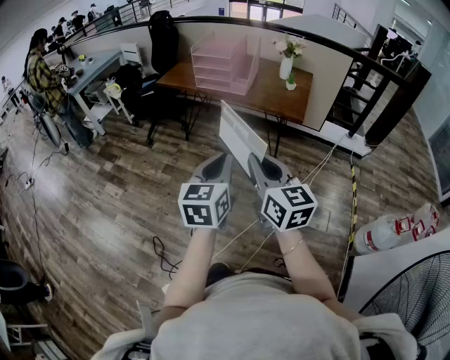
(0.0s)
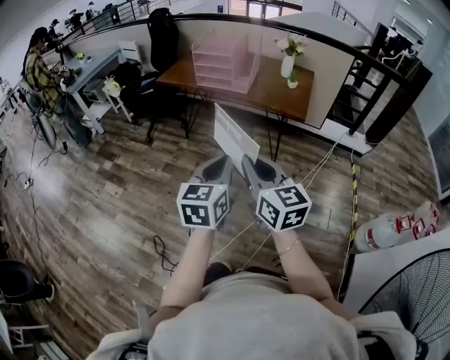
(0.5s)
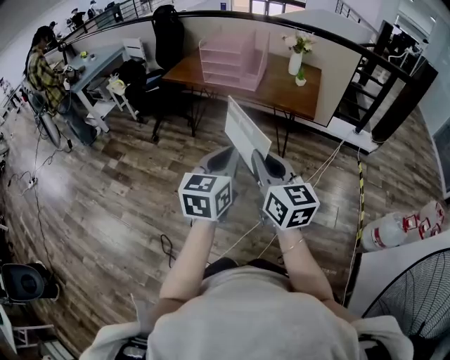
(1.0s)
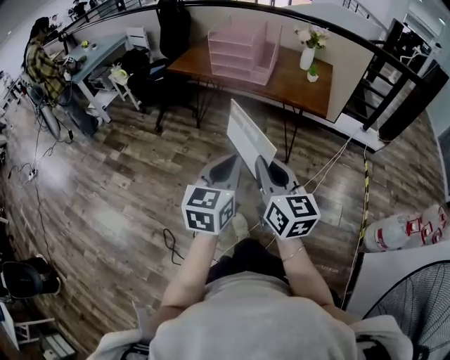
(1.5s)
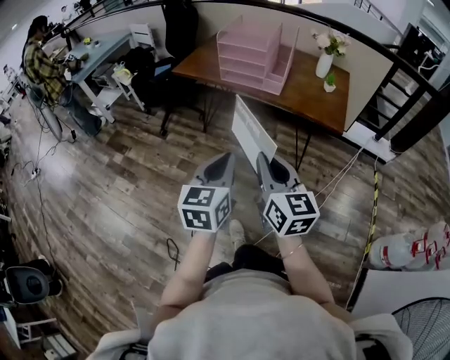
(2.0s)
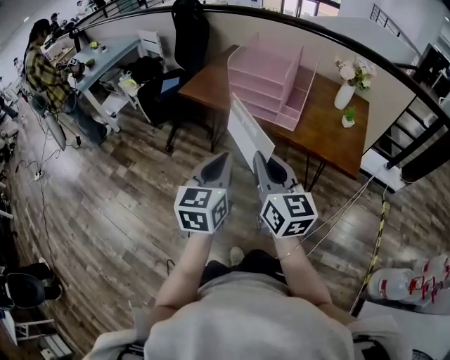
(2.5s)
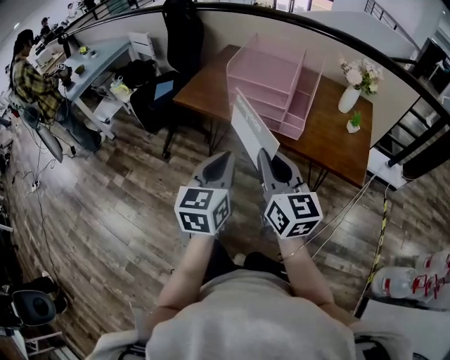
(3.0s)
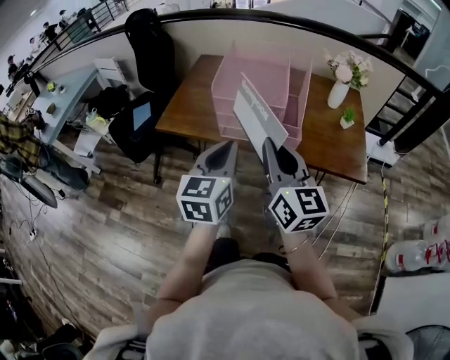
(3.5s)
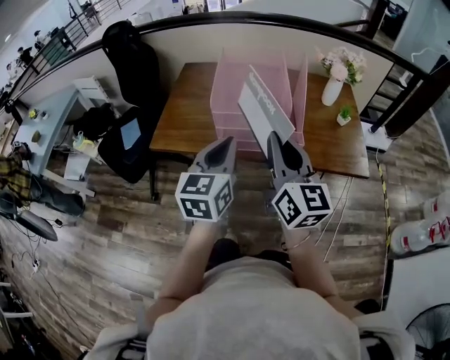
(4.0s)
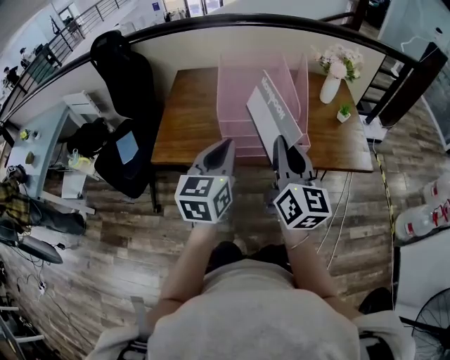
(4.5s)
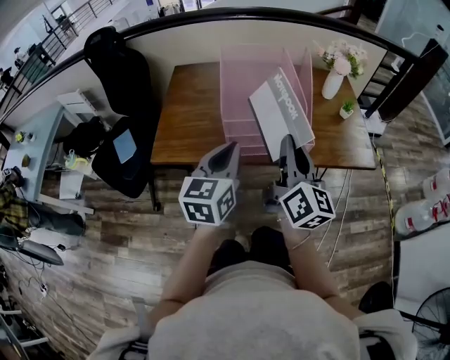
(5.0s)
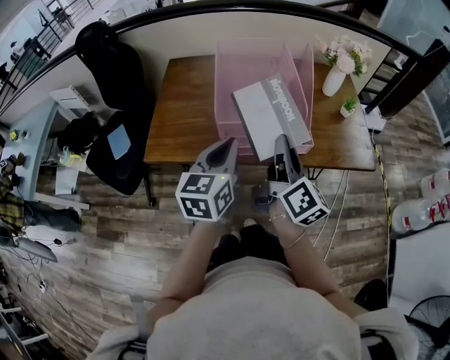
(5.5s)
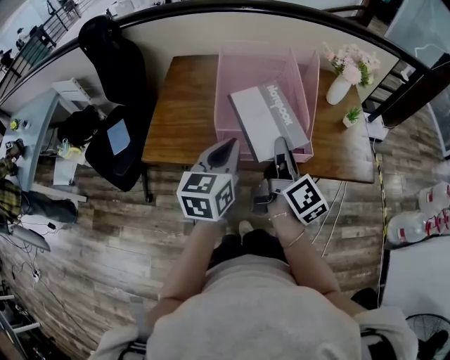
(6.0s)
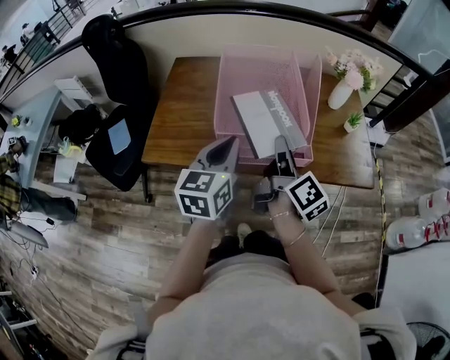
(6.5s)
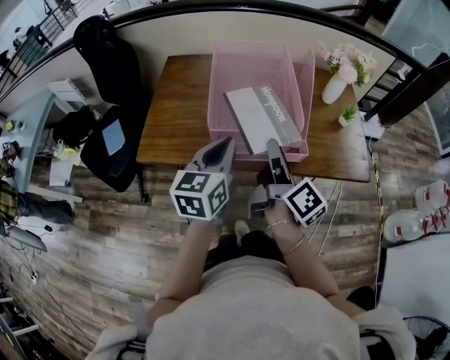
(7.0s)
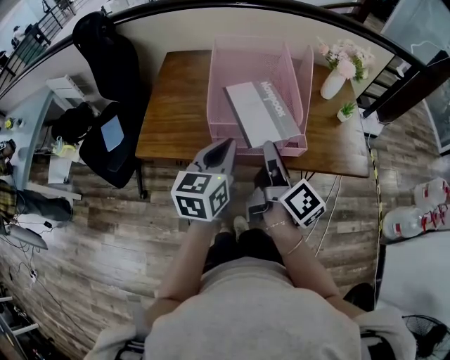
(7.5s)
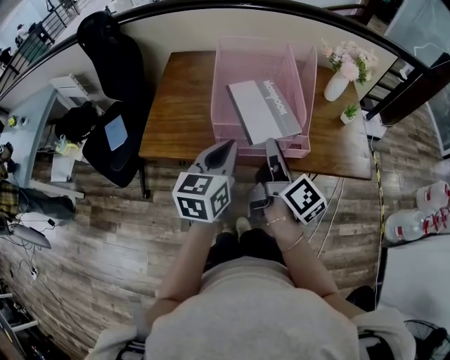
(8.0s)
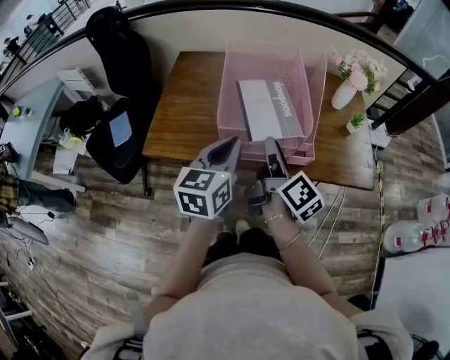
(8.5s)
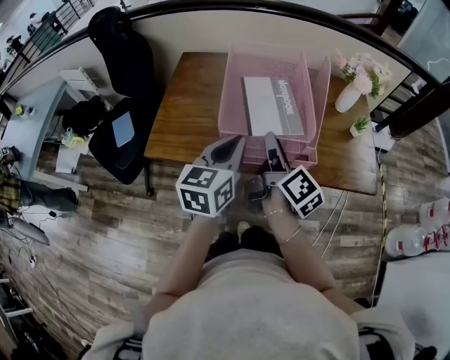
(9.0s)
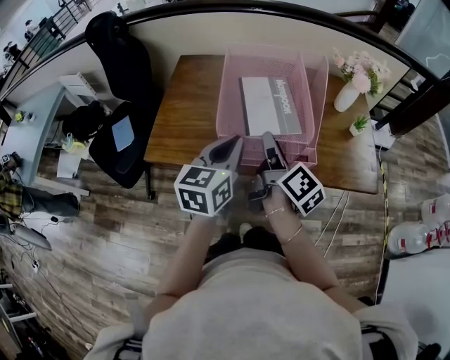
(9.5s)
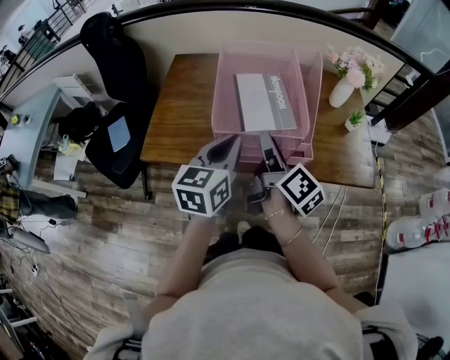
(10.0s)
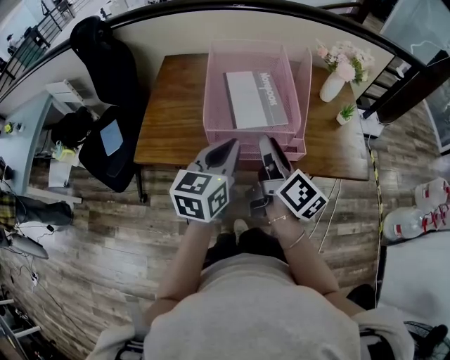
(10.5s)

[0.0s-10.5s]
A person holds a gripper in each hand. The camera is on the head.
0.0s to 2.0s: Both grippers travel together forward and to the left, some 20 cm.
2.0s to 4.0s: Both grippers are carried forward, roughly 40 cm. The right gripper turns by roughly 20 degrees.
4.0s to 6.5s: The left gripper is displaced forward by approximately 10 cm. The right gripper moves forward and downward, roughly 15 cm, and rotates around the line of its fingers by some 50 degrees, clockwise from behind.
6.5s to 10.5s: There are only small adjustments of the grippers.

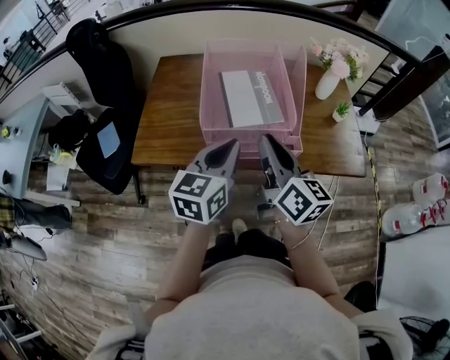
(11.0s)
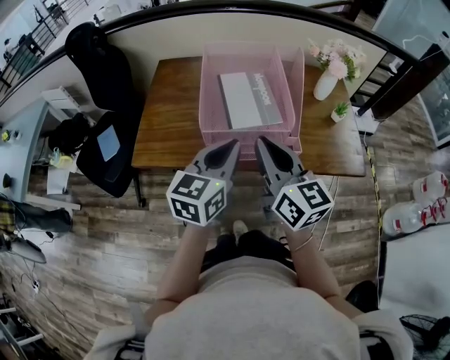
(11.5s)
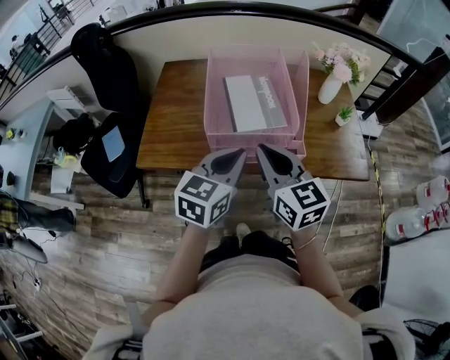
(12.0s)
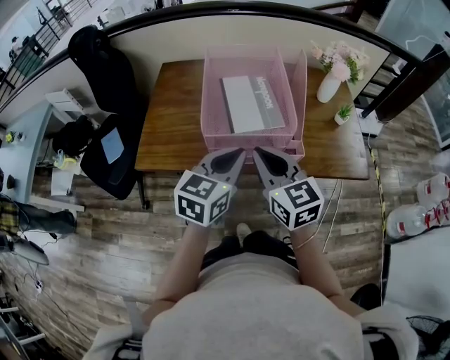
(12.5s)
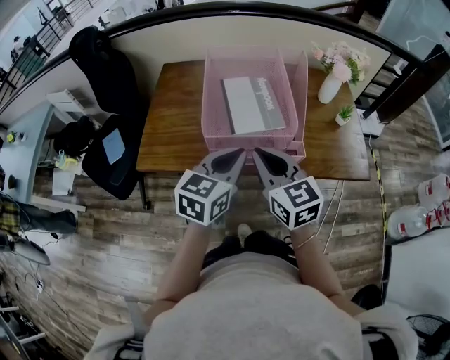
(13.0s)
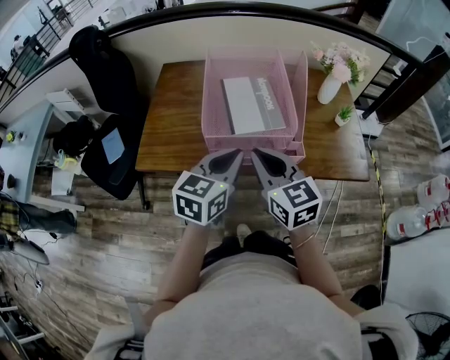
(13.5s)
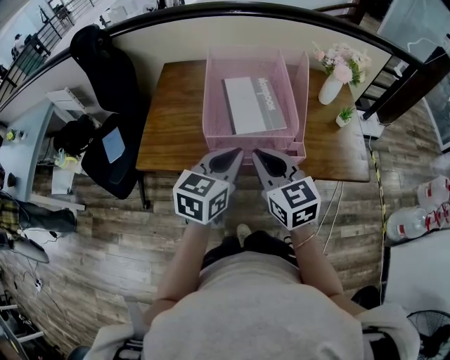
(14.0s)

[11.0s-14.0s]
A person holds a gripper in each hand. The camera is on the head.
11.0s to 12.5s: The right gripper rotates about 40 degrees.
12.5s to 14.0s: Both grippers stay about where they are.

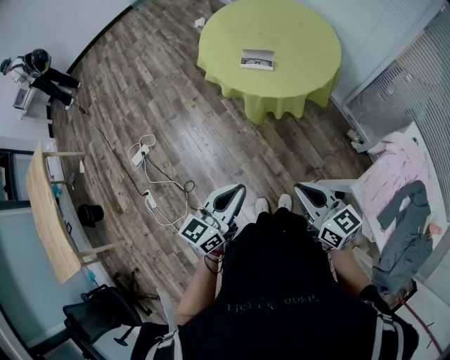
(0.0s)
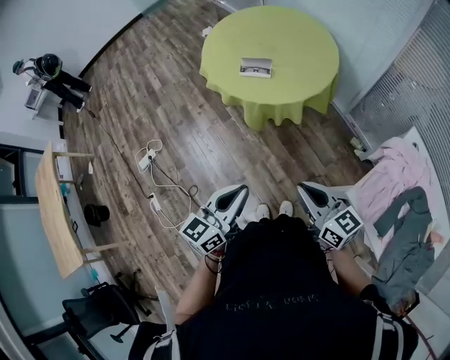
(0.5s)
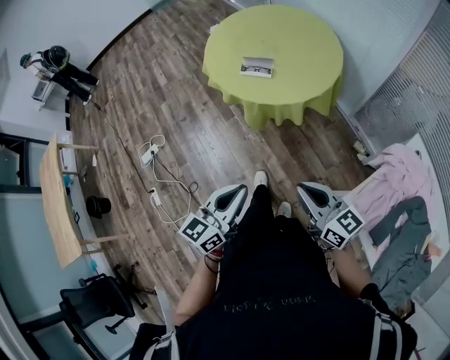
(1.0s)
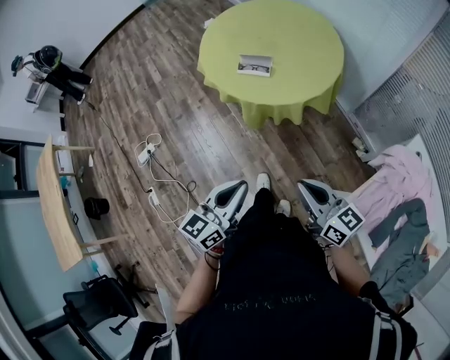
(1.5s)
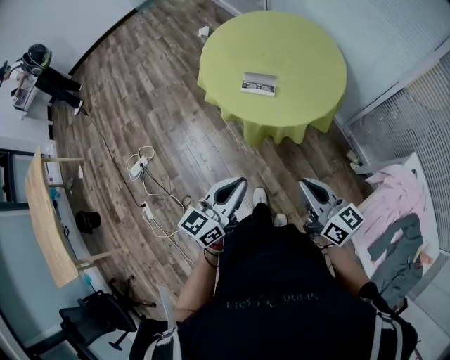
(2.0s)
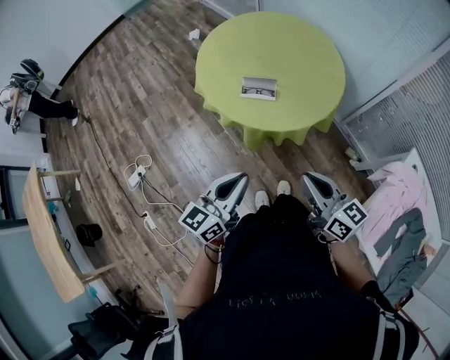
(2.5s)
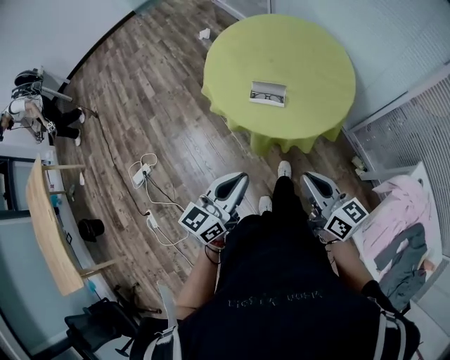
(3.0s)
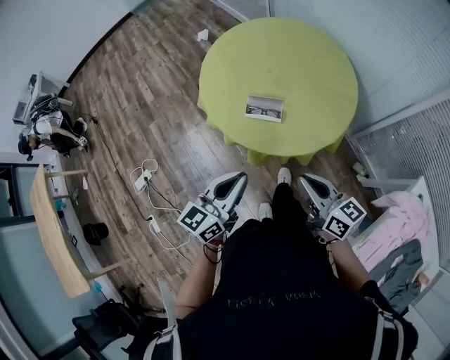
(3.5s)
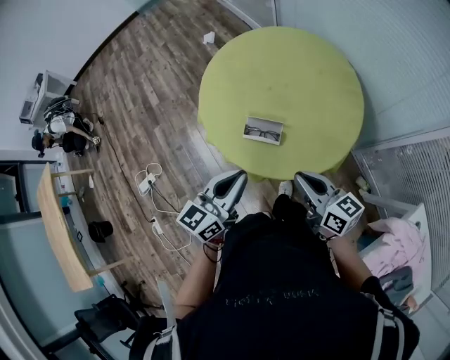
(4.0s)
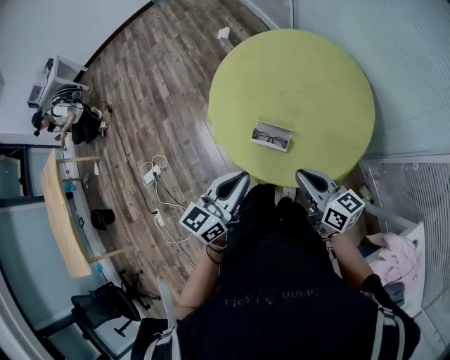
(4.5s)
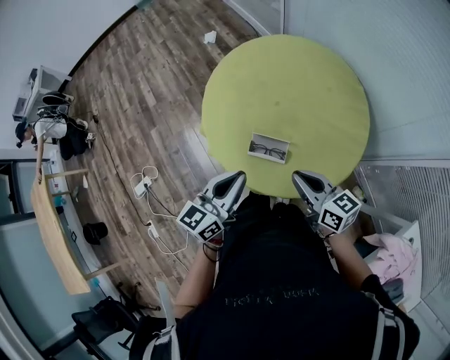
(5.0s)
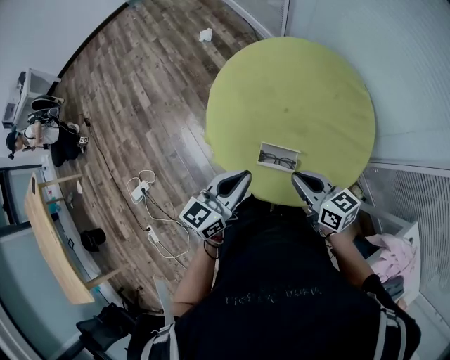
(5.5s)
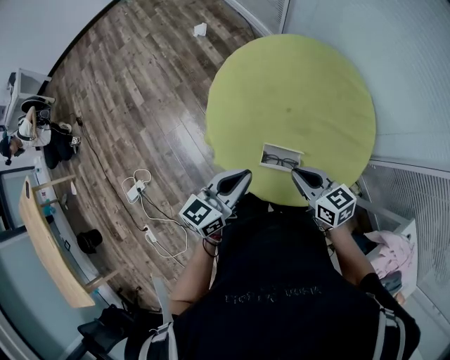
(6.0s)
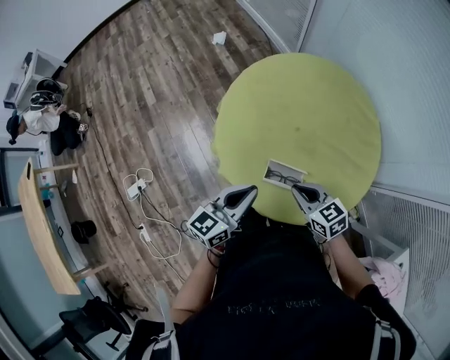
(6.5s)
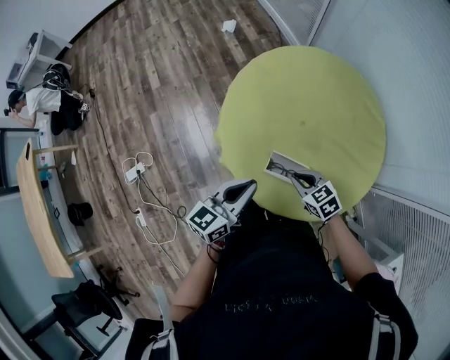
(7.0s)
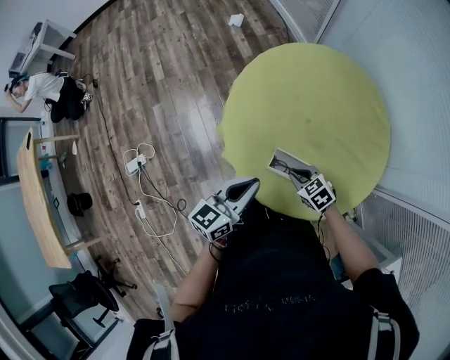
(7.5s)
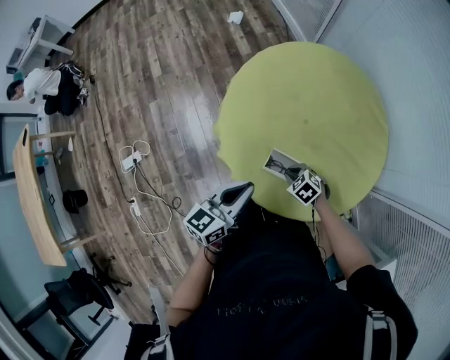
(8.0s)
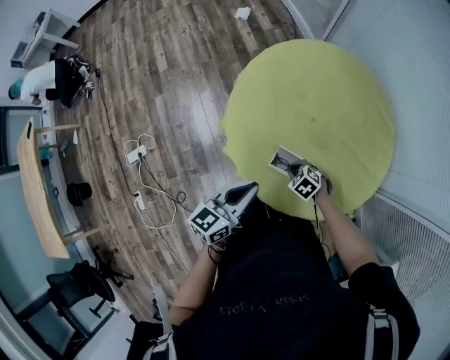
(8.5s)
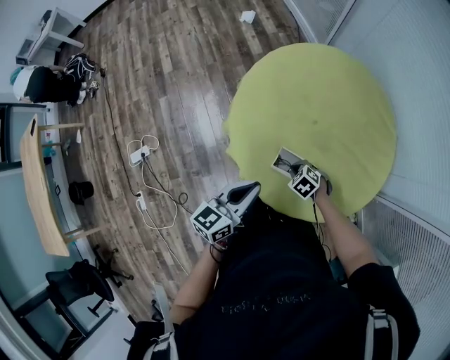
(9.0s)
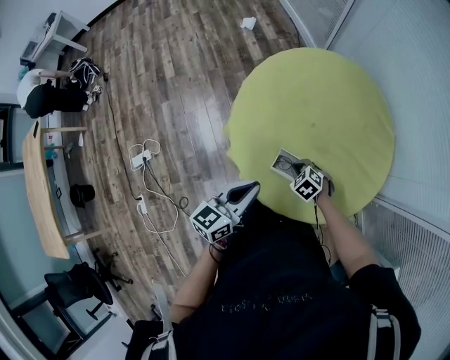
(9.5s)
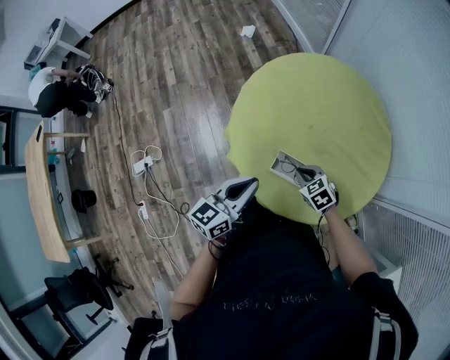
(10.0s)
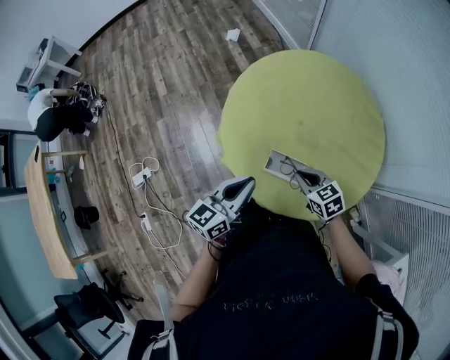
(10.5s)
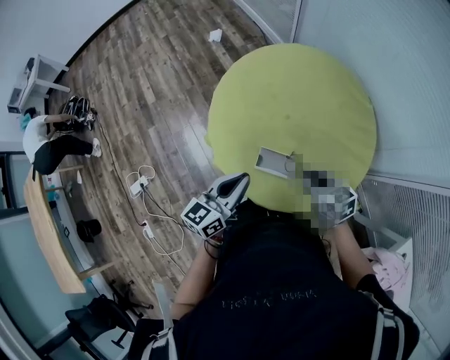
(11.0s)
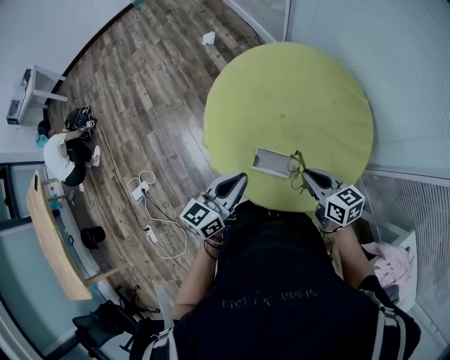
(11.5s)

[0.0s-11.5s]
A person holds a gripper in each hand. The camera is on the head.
0.0s to 2.0s: Both grippers move forward, roughly 15 cm.
2.0s to 4.0s: Both grippers move forward, approximately 25 cm.
4.0s to 6.0s: Both grippers move forward and to the left, some 15 cm. The right gripper swivels some 20 degrees.
6.0s to 7.5s: The right gripper goes roughly 15 cm downward, and rotates about 40 degrees.
7.5s to 9.5s: The right gripper goes approximately 5 cm downward.
9.5s to 11.5s: The right gripper goes approximately 20 cm upward and to the right, and tips its fingers upward by about 40 degrees.

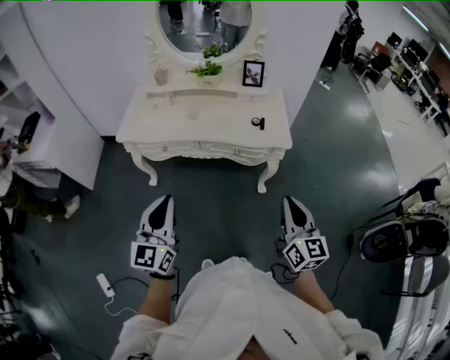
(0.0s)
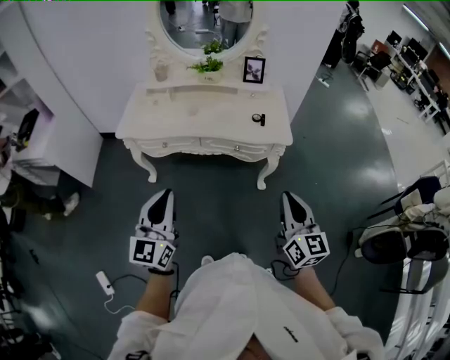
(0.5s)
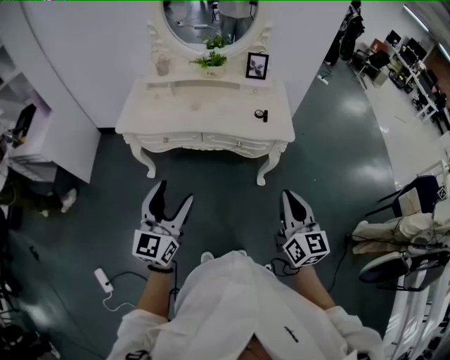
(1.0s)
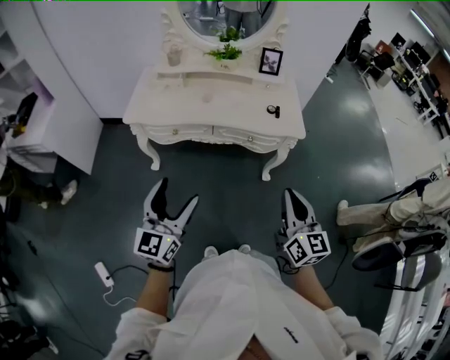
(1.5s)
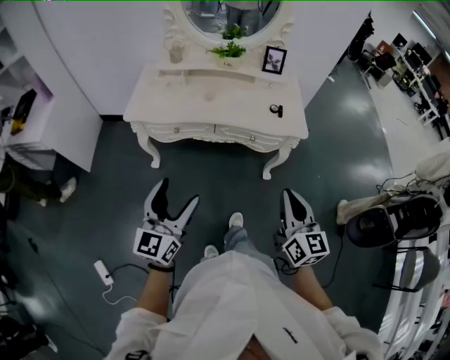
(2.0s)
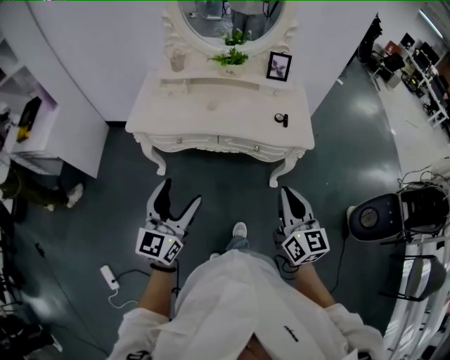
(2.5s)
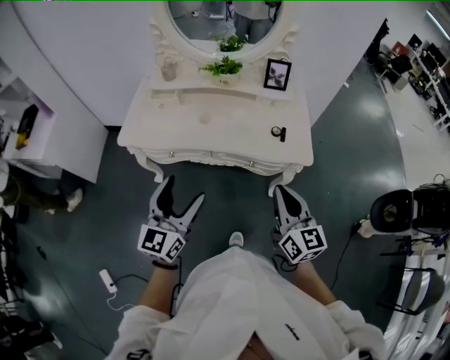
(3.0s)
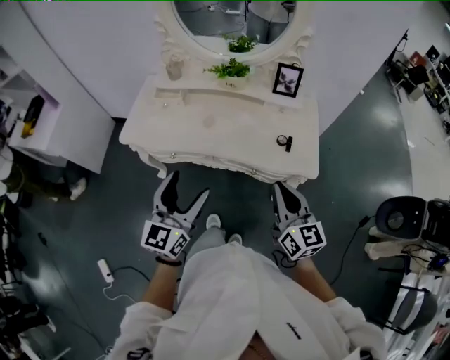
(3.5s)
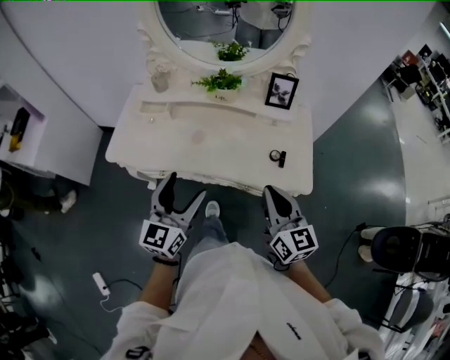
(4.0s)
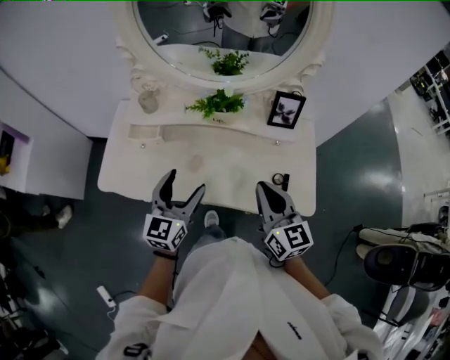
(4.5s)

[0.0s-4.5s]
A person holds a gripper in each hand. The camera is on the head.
0.0s to 2.0s: The left gripper goes some 10 cm to the left, and opens its fingers; the right gripper goes approximately 10 cm to the left.
2.0s to 4.5s: Both grippers are carried forward, about 50 cm.
